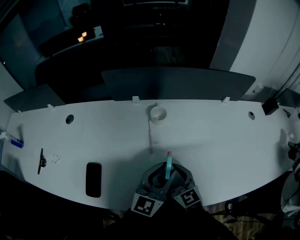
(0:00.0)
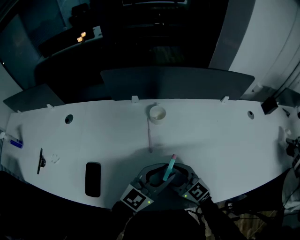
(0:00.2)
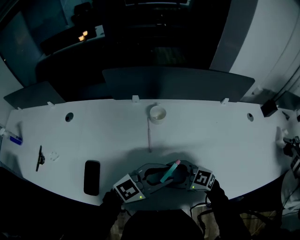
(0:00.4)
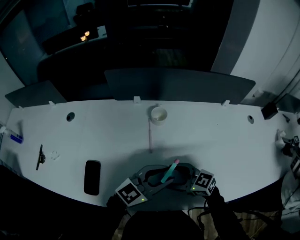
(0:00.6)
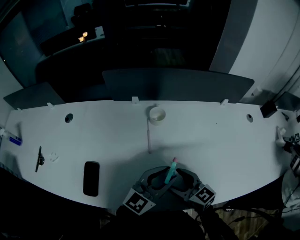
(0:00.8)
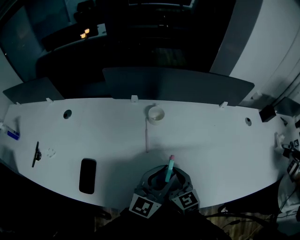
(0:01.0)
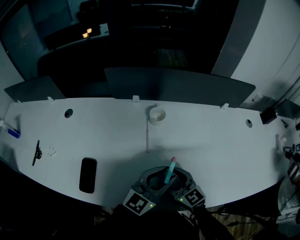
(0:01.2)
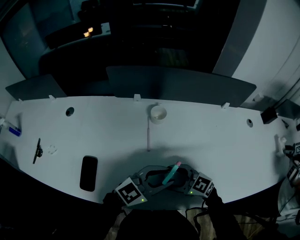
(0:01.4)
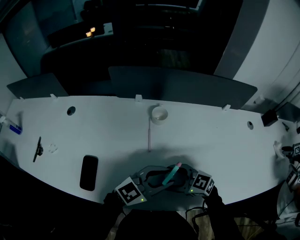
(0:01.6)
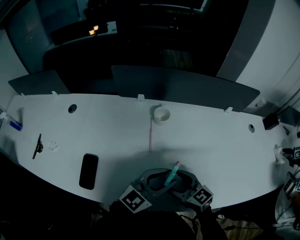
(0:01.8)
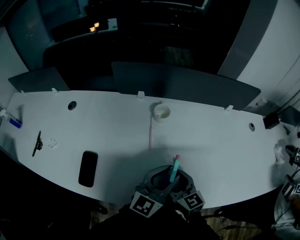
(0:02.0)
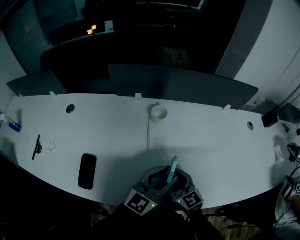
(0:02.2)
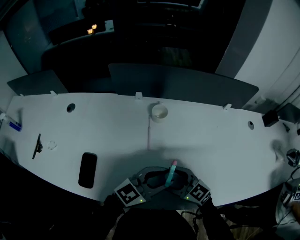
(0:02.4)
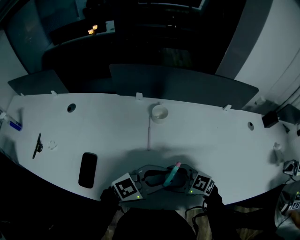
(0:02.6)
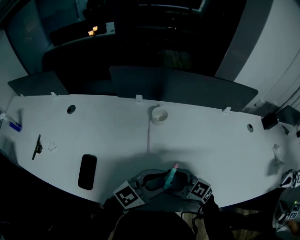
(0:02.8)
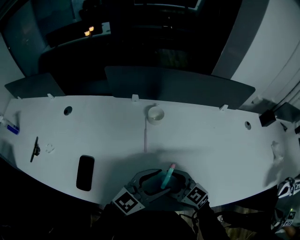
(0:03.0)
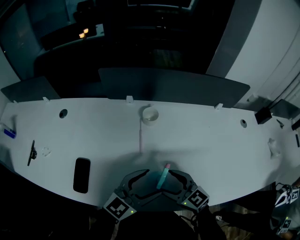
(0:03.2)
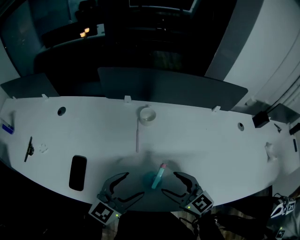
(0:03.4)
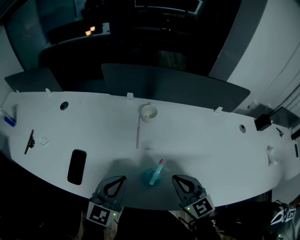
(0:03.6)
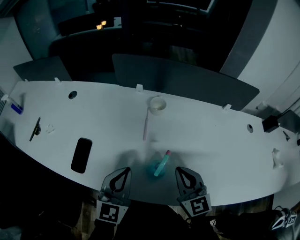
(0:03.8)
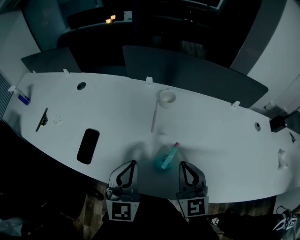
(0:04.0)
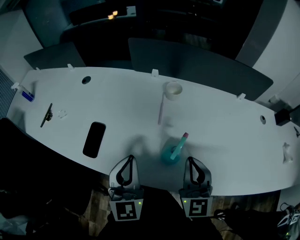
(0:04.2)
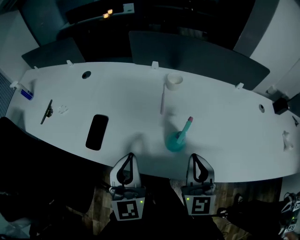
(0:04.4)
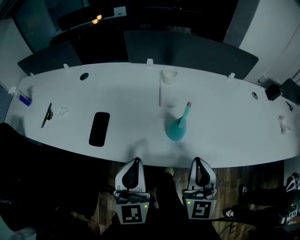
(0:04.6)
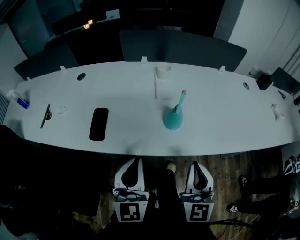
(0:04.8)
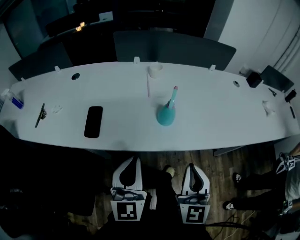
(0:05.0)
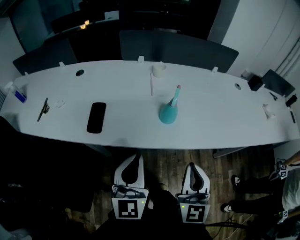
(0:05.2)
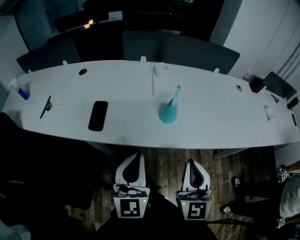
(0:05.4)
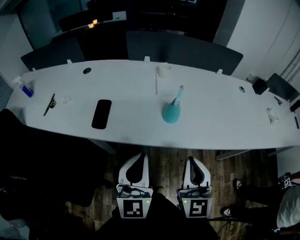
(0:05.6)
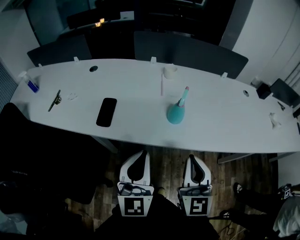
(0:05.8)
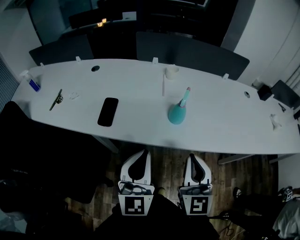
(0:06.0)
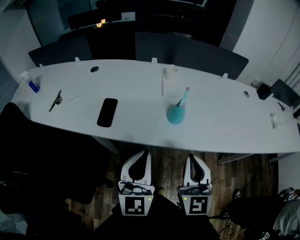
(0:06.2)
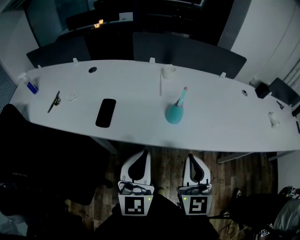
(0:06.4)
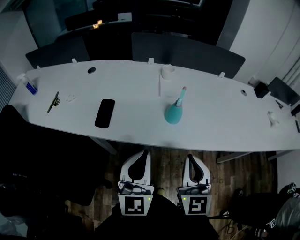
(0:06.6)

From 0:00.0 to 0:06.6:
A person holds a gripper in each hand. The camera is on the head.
From 0:00.0 to 0:01.6: The right gripper changes its angle by about 40 degrees. The left gripper turns by about 30 degrees.
From 0:01.6 to 0:03.2: The left gripper opens, while the right gripper rotates approximately 20 degrees.
From 0:03.2 to 0:05.0: The right gripper goes approximately 25 cm backward and upward, rotates some 60 degrees, and closes up. The left gripper shifts about 25 cm backward and to the left, changes its angle by approximately 40 degrees, and closes its fingers.
From 0:05.0 to 0:06.6: There are only small adjustments of the grippers.

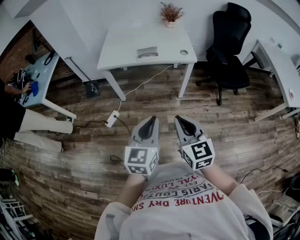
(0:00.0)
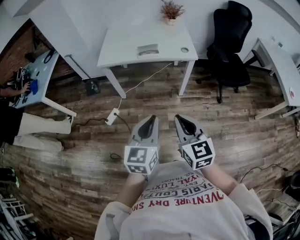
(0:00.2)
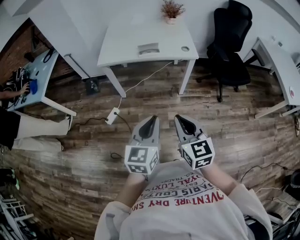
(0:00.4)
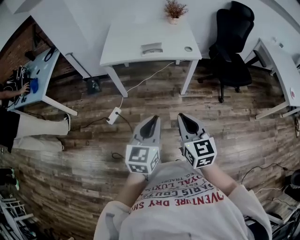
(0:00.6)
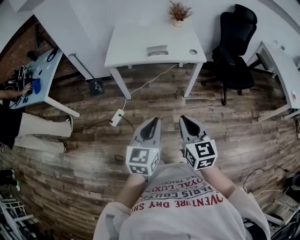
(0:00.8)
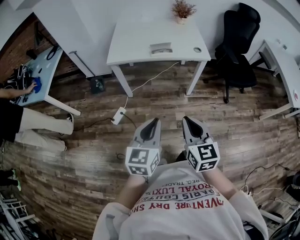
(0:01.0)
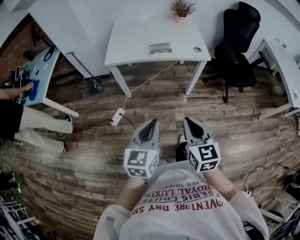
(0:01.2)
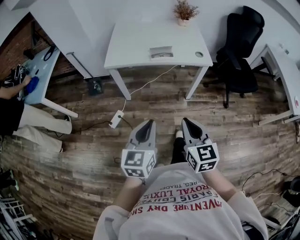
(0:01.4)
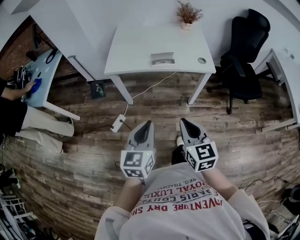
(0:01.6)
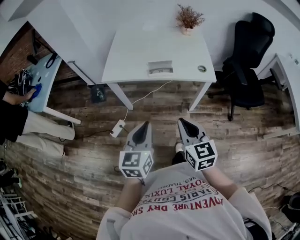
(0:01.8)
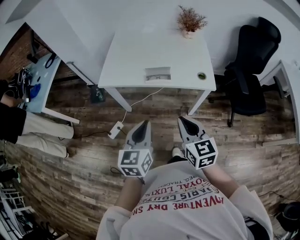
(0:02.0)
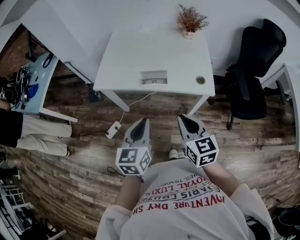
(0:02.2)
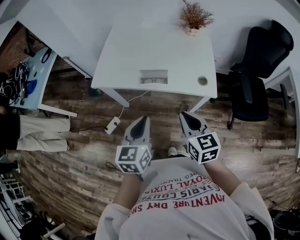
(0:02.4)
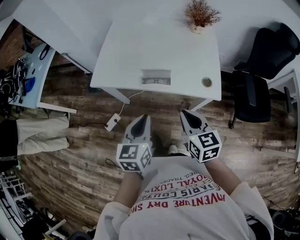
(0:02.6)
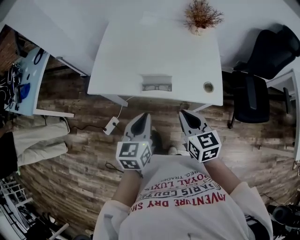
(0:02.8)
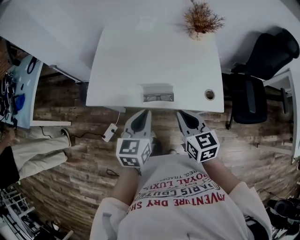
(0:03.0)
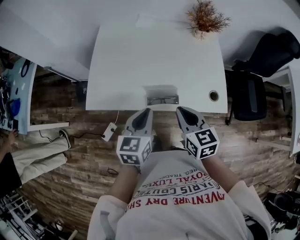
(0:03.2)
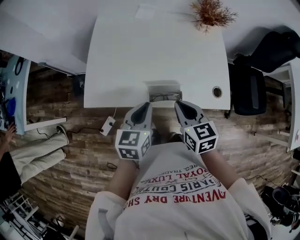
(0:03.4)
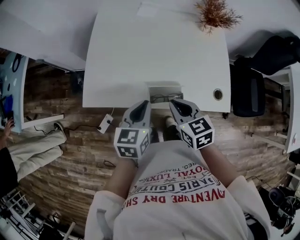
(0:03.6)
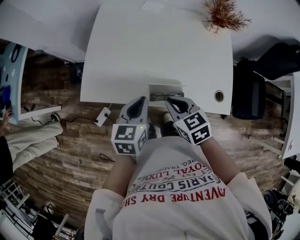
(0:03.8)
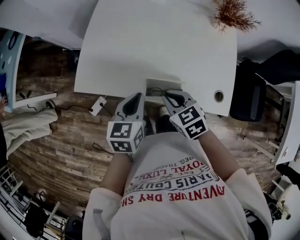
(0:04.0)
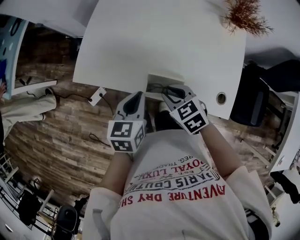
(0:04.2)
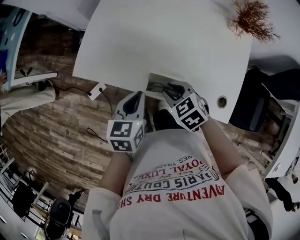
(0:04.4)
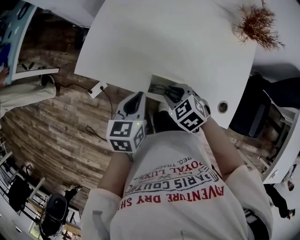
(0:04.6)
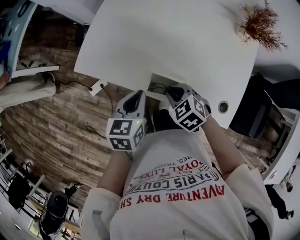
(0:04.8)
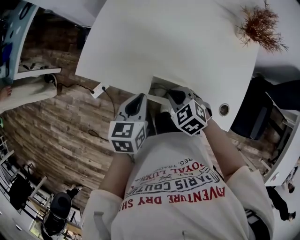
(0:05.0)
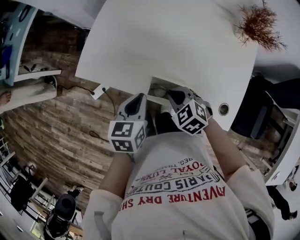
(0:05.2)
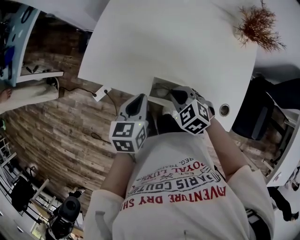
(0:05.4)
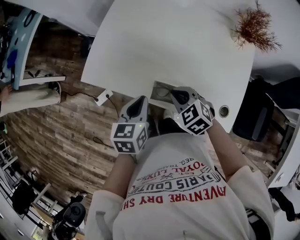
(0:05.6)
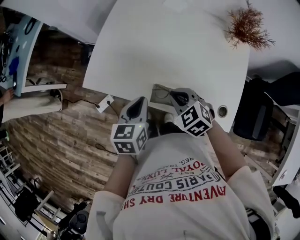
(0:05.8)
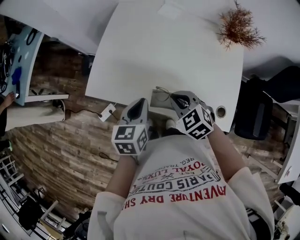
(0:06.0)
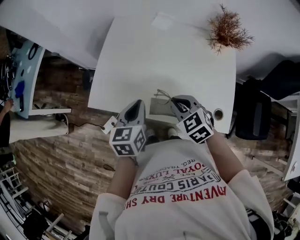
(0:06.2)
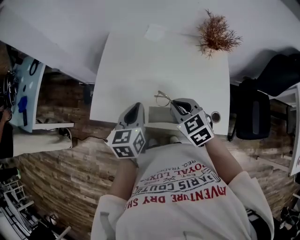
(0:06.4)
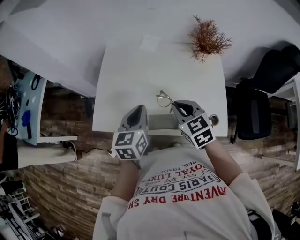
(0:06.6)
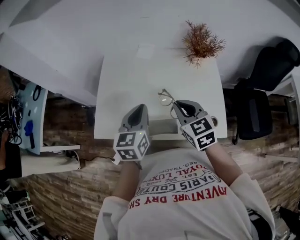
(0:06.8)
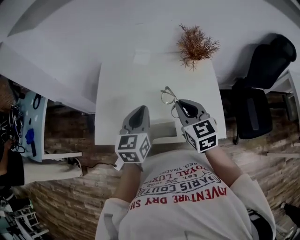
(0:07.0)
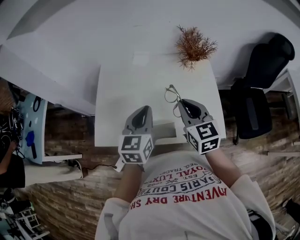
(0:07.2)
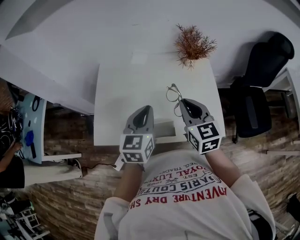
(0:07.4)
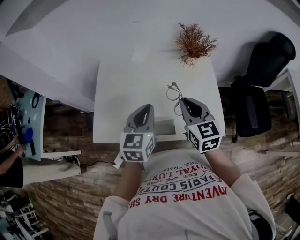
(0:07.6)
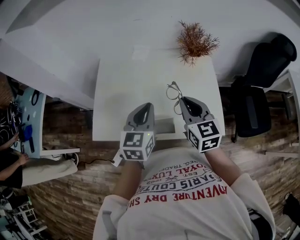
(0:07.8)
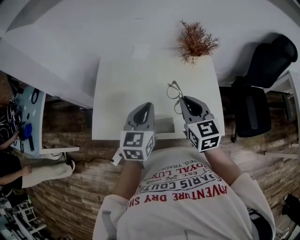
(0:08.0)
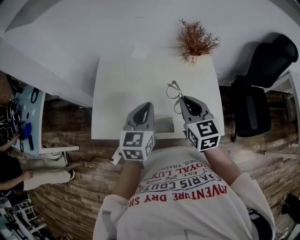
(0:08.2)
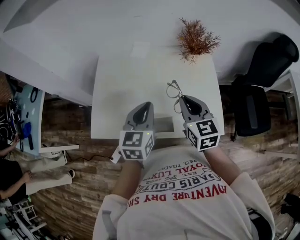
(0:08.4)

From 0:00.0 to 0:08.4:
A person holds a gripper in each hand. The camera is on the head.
From 0:00.0 to 0:01.4: The left gripper goes some 10 cm to the left and forward. The right gripper travels forward and to the left by some 10 cm.
From 0:01.4 to 0:02.8: The two grippers go about 35 cm forward.
From 0:02.8 to 0:04.2: The right gripper goes roughly 20 cm forward, downward and to the left, rotates about 40 degrees, and opens up. The left gripper travels forward and downward by approximately 15 cm.
From 0:05.6 to 0:07.0: The left gripper travels upward, to the right and forward by roughly 20 cm, and changes its angle by approximately 30 degrees; the right gripper is displaced upward and to the right by roughly 25 cm, and points its fingers approximately 30 degrees further upward.
From 0:07.0 to 0:08.4: There are only small adjustments of the grippers.

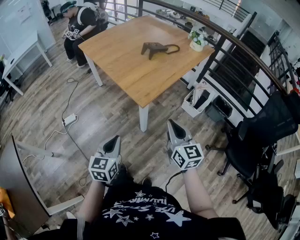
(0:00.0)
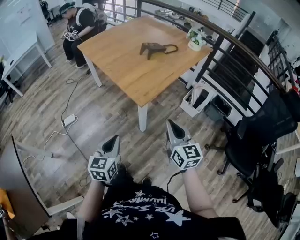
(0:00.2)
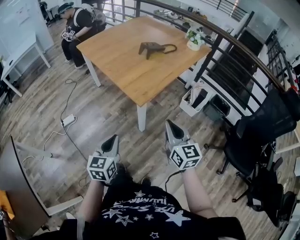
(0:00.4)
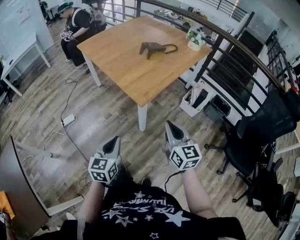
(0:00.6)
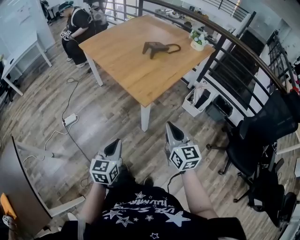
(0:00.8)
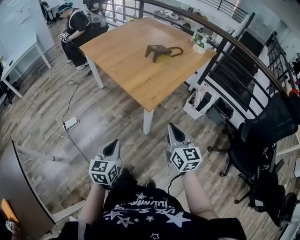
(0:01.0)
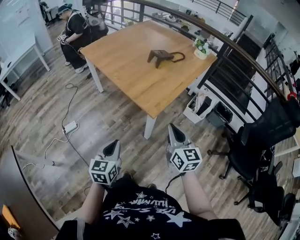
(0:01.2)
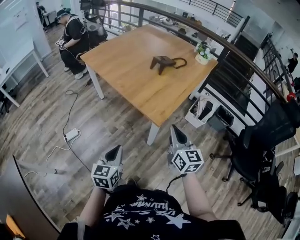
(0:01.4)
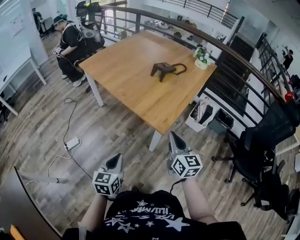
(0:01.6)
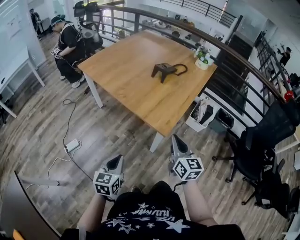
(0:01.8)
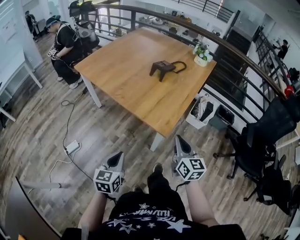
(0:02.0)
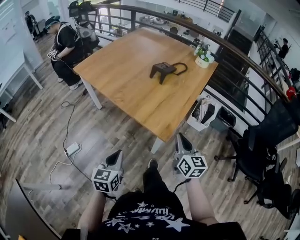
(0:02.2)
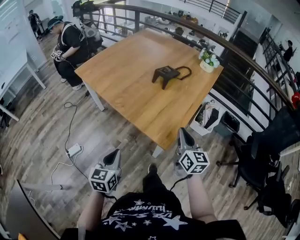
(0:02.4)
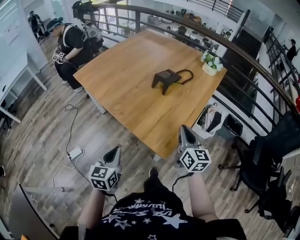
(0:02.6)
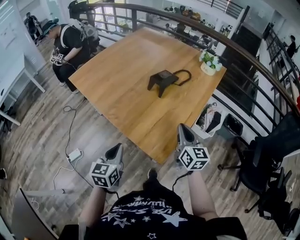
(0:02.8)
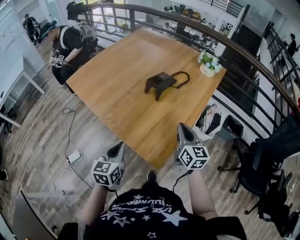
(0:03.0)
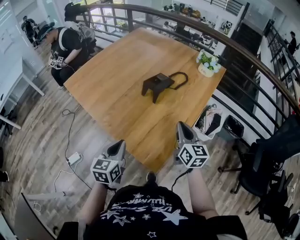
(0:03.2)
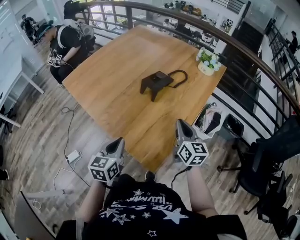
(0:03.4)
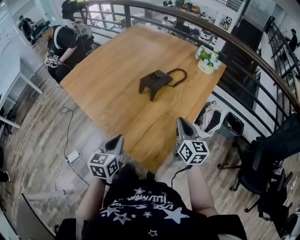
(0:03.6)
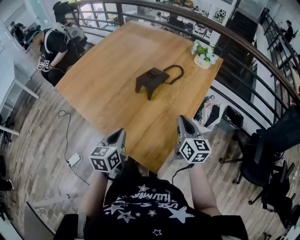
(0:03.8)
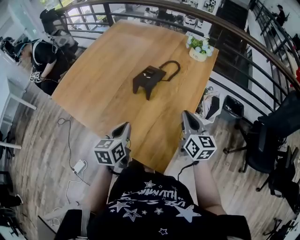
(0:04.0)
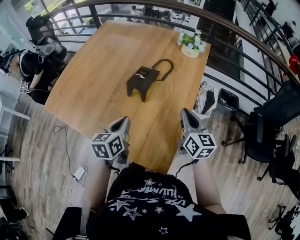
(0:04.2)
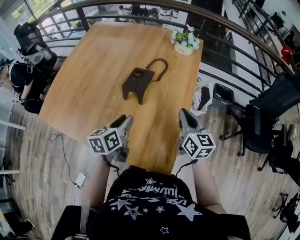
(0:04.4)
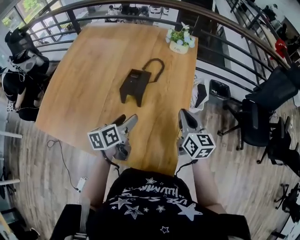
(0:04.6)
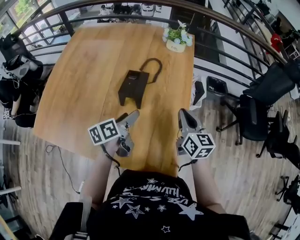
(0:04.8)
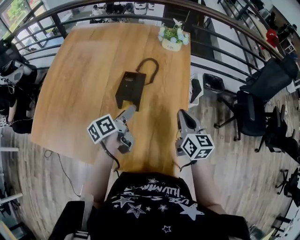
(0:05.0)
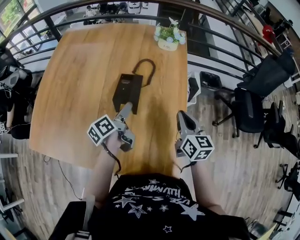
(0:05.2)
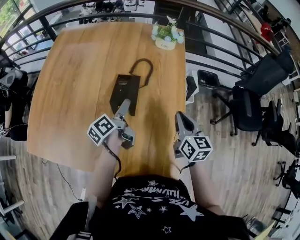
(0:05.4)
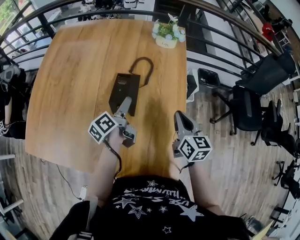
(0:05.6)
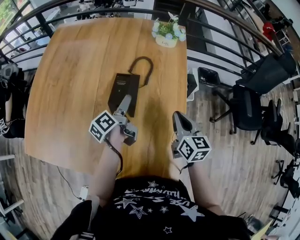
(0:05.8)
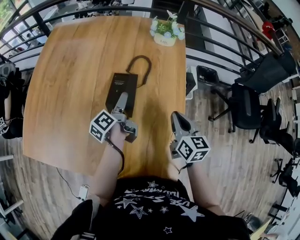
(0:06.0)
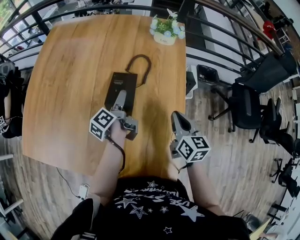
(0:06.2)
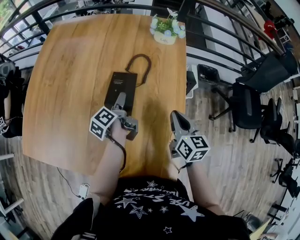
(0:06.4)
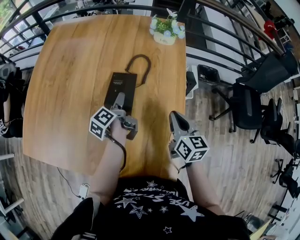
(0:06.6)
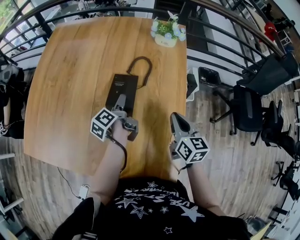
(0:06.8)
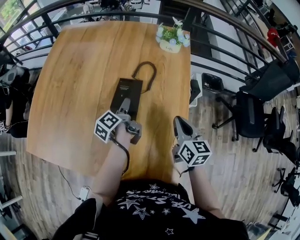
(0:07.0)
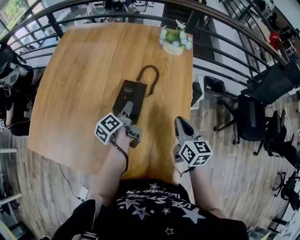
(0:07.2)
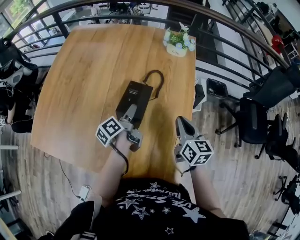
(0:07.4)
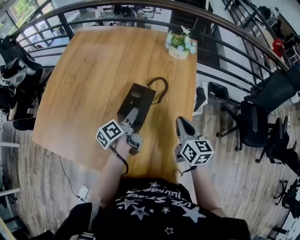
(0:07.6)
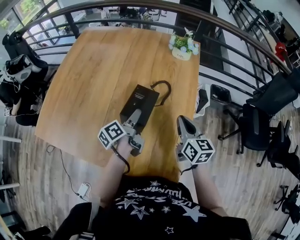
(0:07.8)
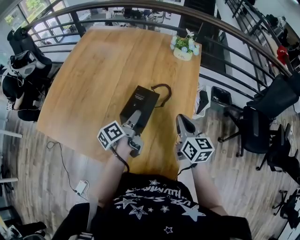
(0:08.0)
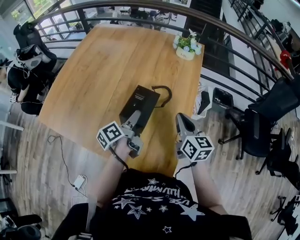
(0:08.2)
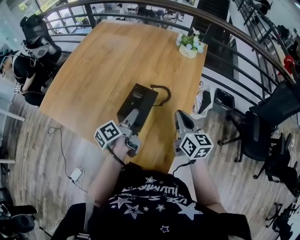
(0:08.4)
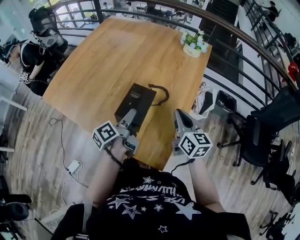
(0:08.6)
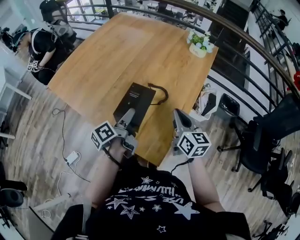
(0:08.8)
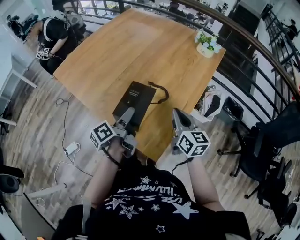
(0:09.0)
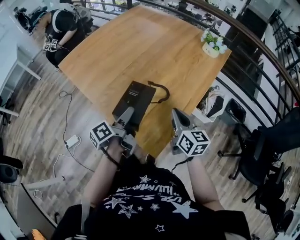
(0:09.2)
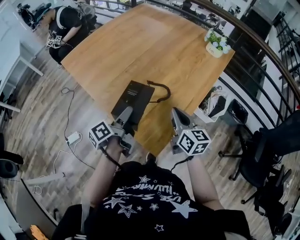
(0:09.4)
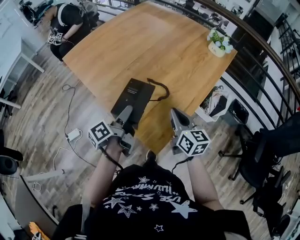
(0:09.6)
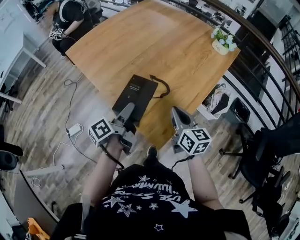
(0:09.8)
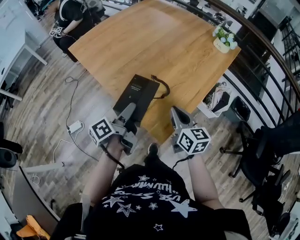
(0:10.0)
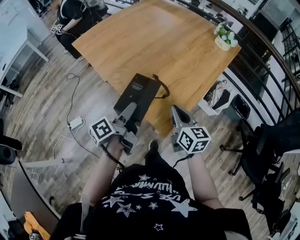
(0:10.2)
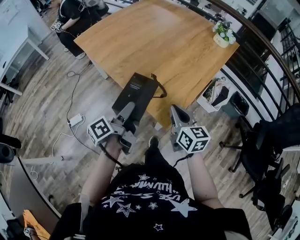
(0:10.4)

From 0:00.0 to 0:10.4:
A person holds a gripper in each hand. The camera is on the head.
From 0:00.0 to 0:01.4: Both grippers move to the left and forward, approximately 15 cm.
From 0:01.4 to 0:03.0: The two grippers go approximately 30 cm forward.
From 0:03.0 to 0:04.4: The left gripper goes some 25 cm forward, turns by roughly 30 degrees, and opens up; the right gripper goes approximately 10 cm forward.
From 0:04.4 to 0:06.0: The left gripper shifts approximately 20 cm forward and downward, rotates around the line of its fingers by about 40 degrees, counterclockwise from behind, and opens up. Meanwhile the right gripper moves downward, approximately 5 cm.
From 0:06.0 to 0:07.4: The left gripper closes its fingers.
From 0:07.4 to 0:09.0: The left gripper goes approximately 25 cm backward, and changes its angle by some 20 degrees. Meanwhile the right gripper moves backward, approximately 10 cm, and swivels approximately 30 degrees.
From 0:09.0 to 0:10.4: The two grippers go approximately 15 cm backward and to the left.
